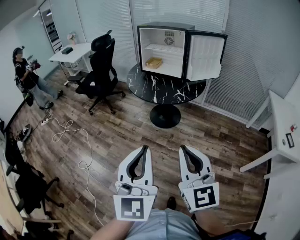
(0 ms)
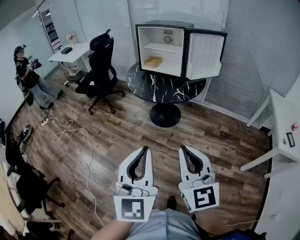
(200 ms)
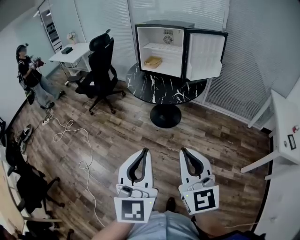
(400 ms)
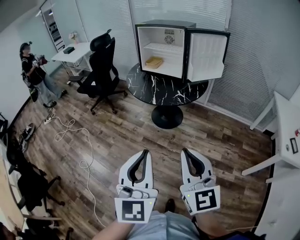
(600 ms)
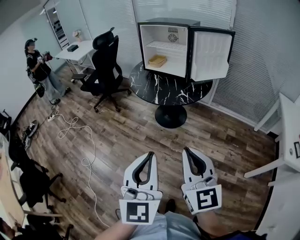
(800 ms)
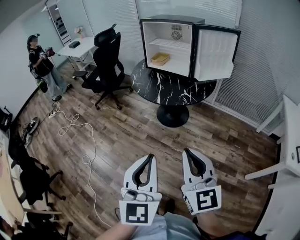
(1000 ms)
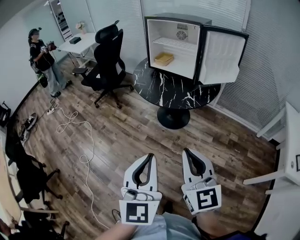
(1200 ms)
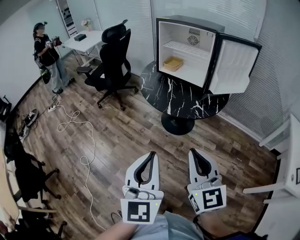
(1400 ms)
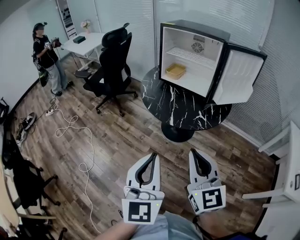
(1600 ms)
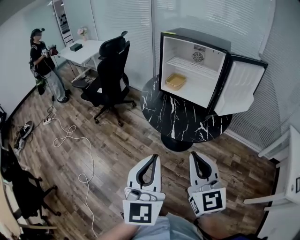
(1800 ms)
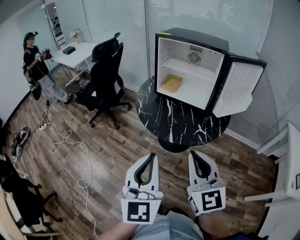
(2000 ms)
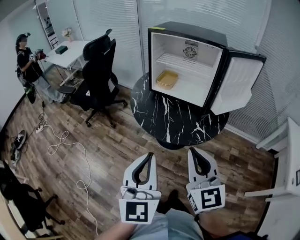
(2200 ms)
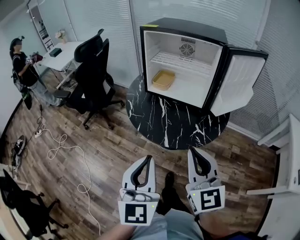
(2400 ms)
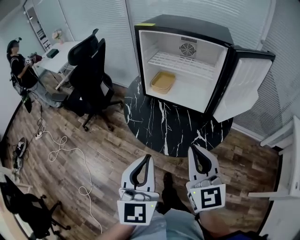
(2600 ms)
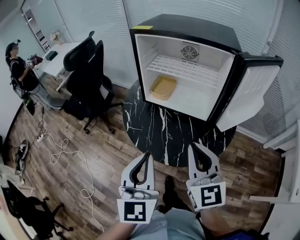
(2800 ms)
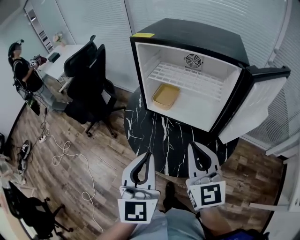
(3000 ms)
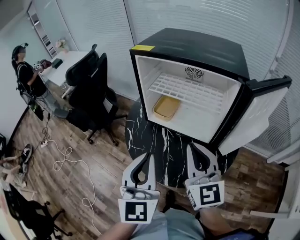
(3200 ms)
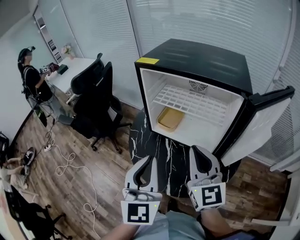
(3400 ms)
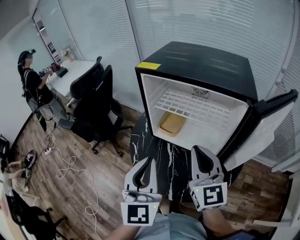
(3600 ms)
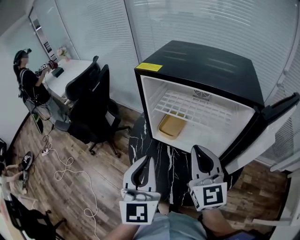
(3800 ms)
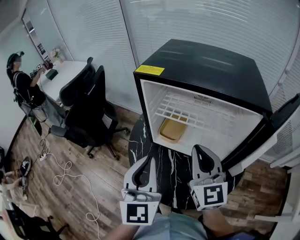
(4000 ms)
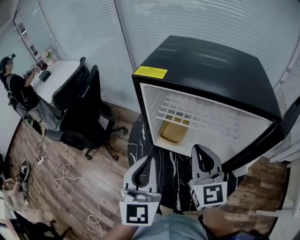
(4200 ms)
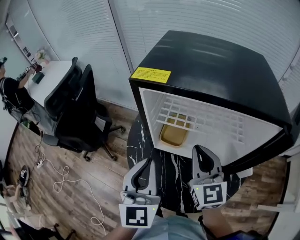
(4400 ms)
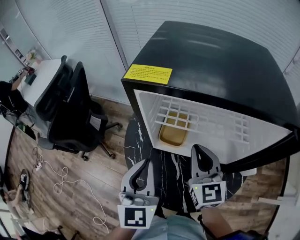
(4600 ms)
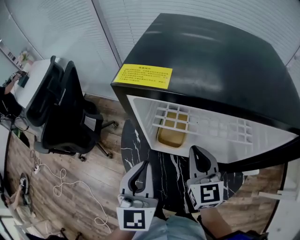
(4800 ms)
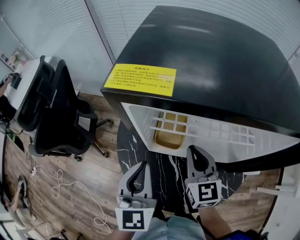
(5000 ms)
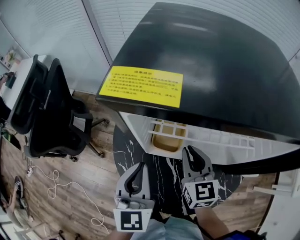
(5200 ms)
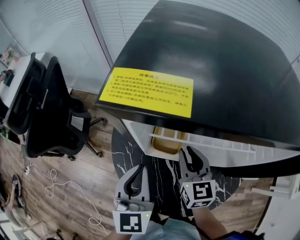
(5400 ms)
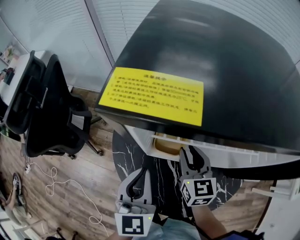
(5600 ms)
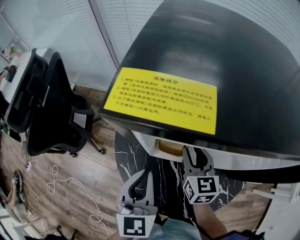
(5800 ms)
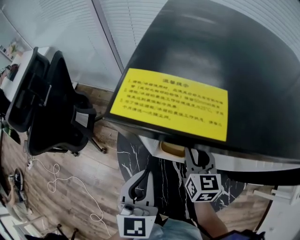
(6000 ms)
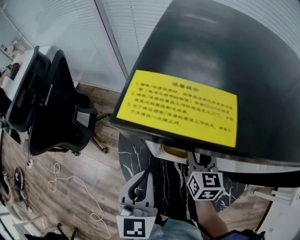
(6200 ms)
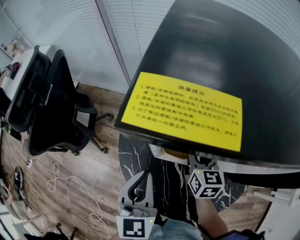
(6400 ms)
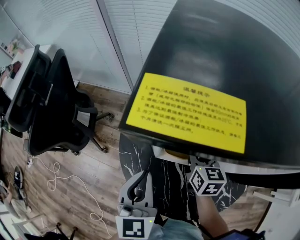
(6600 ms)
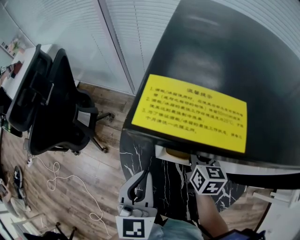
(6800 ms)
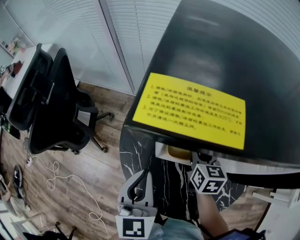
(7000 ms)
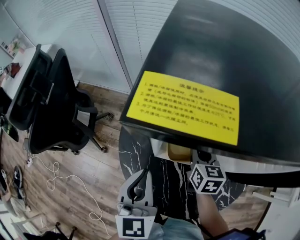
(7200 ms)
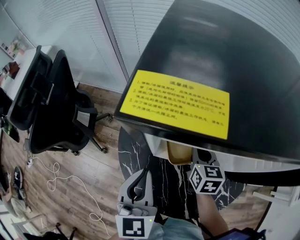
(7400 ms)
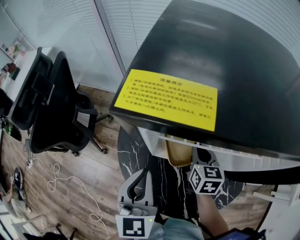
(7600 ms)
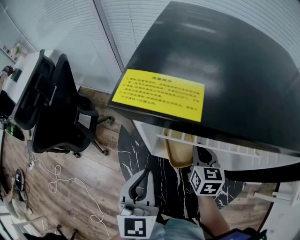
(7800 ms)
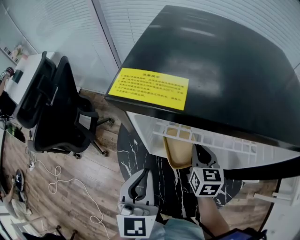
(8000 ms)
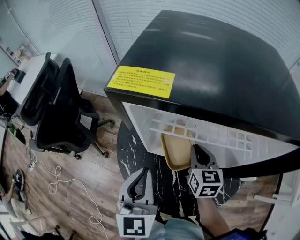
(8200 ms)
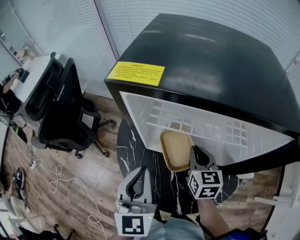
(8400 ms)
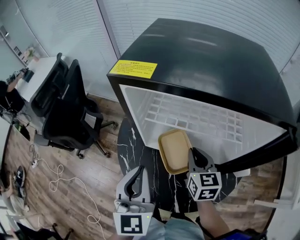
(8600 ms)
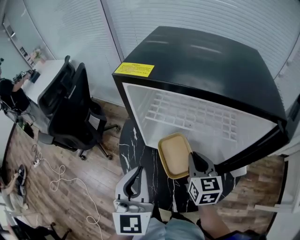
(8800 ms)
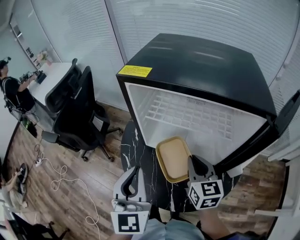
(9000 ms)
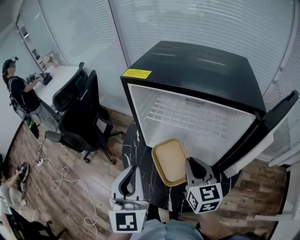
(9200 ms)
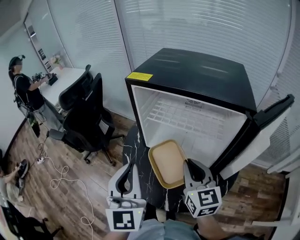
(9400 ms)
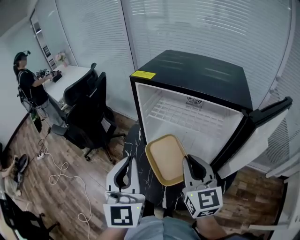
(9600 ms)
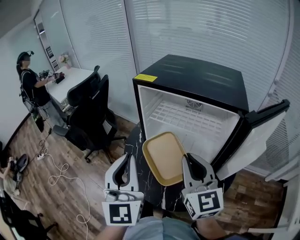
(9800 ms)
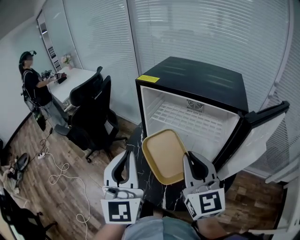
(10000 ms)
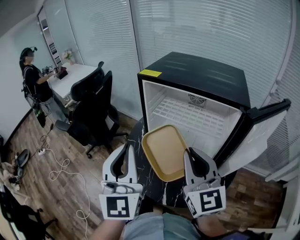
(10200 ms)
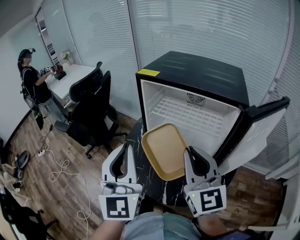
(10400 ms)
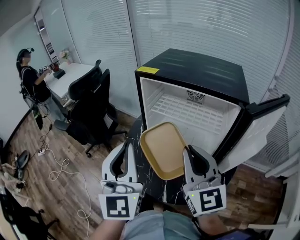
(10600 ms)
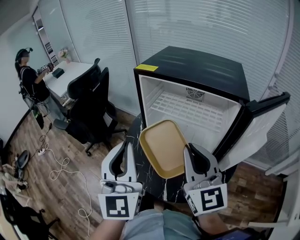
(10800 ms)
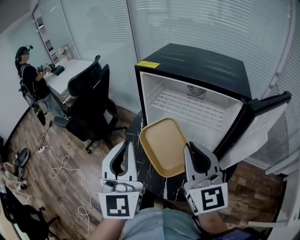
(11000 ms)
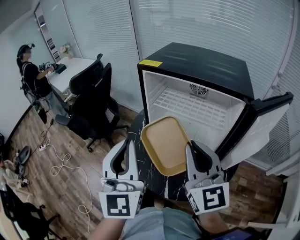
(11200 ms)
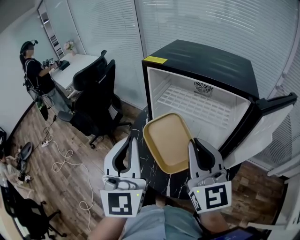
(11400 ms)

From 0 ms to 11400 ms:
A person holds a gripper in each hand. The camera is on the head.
From 0 ms to 1400 ms: Both grippers move forward, some 20 cm.
From 1400 ms to 2800 ms: The two grippers go about 40 cm forward.
From 2800 ms to 4200 ms: Both grippers move forward, about 25 cm.
From 4200 ms to 5600 ms: Both grippers move downward and forward, about 20 cm. The right gripper changes its angle by some 30 degrees, and opens.
From 5600 ms to 7200 ms: The right gripper changes place by about 5 cm.
From 7200 ms to 8600 ms: The left gripper heads backward, upward and to the right, covering approximately 10 cm; the right gripper goes some 10 cm backward and upward.
From 8600 ms to 10000 ms: Both grippers move upward and backward, about 25 cm. The right gripper swivels approximately 40 degrees. Meanwhile the left gripper turns by roughly 30 degrees.
From 10000 ms to 11400 ms: The grippers move only a little.

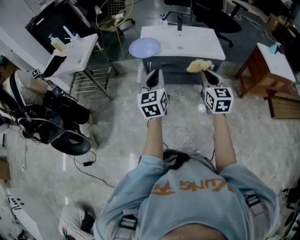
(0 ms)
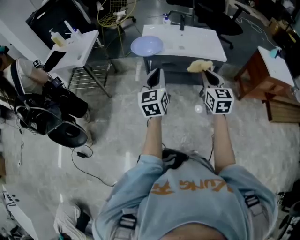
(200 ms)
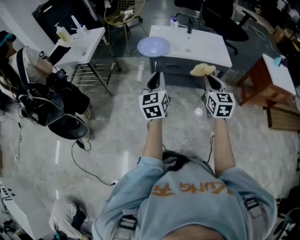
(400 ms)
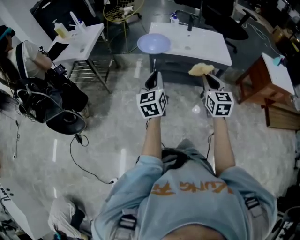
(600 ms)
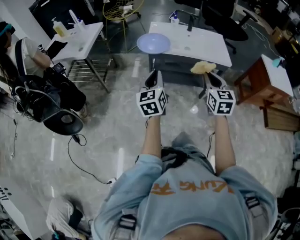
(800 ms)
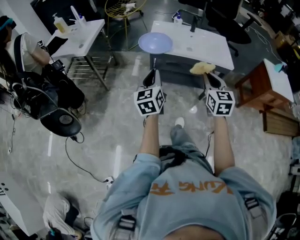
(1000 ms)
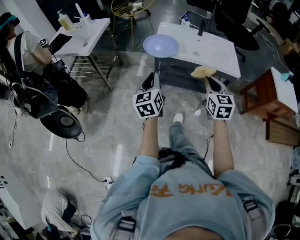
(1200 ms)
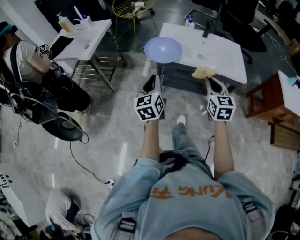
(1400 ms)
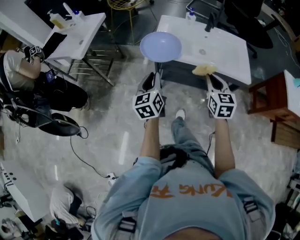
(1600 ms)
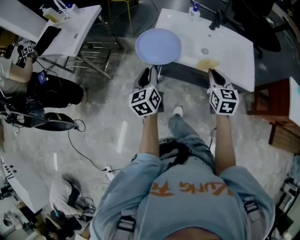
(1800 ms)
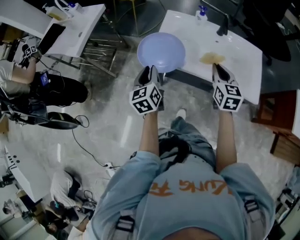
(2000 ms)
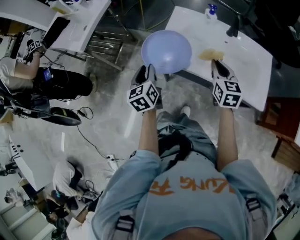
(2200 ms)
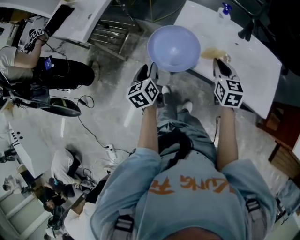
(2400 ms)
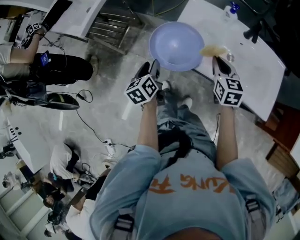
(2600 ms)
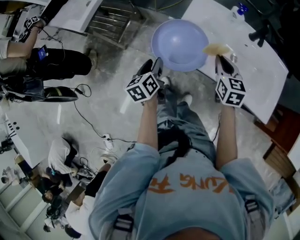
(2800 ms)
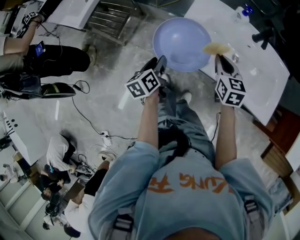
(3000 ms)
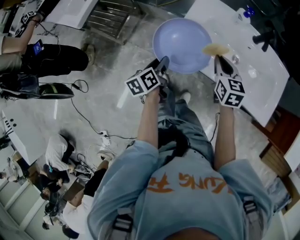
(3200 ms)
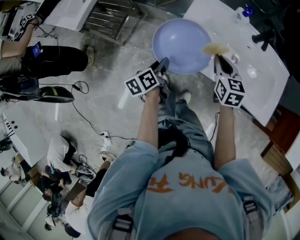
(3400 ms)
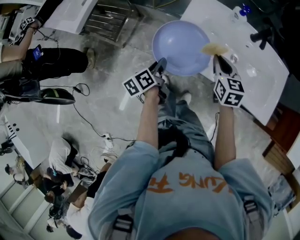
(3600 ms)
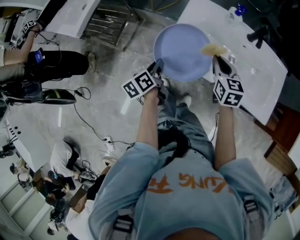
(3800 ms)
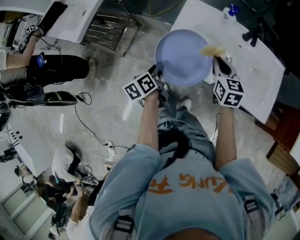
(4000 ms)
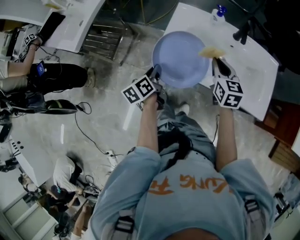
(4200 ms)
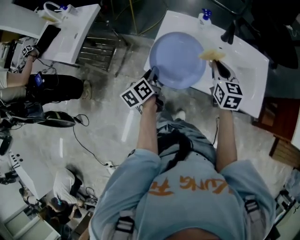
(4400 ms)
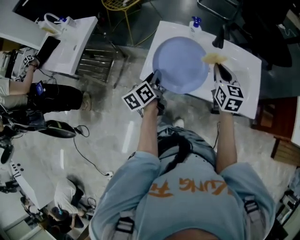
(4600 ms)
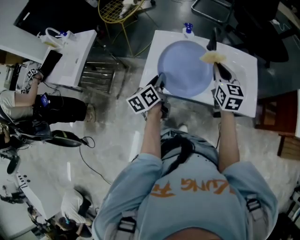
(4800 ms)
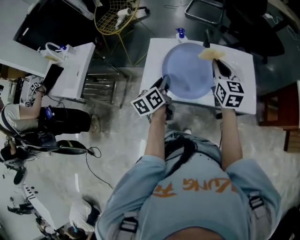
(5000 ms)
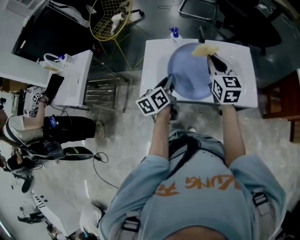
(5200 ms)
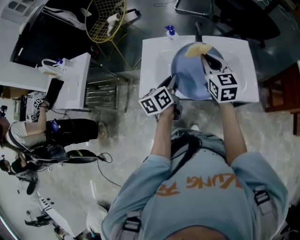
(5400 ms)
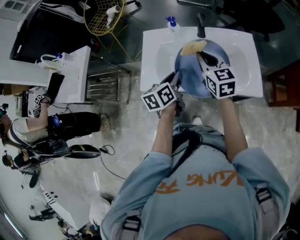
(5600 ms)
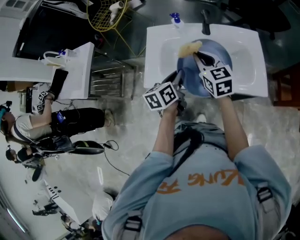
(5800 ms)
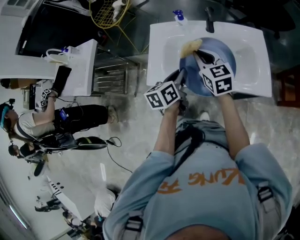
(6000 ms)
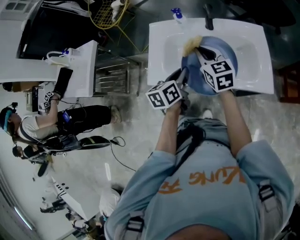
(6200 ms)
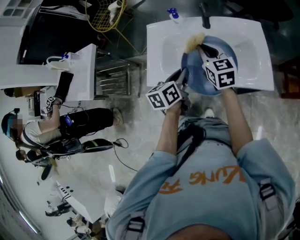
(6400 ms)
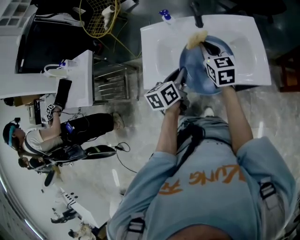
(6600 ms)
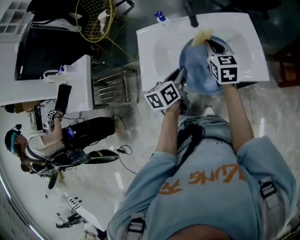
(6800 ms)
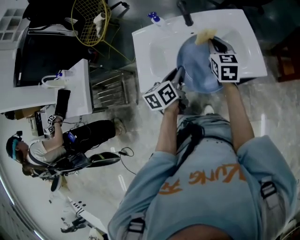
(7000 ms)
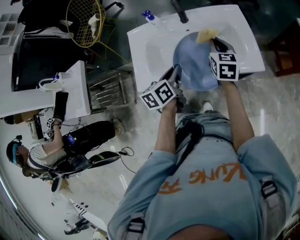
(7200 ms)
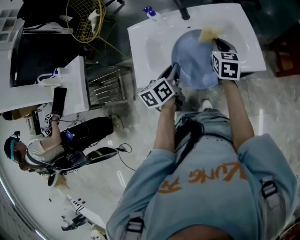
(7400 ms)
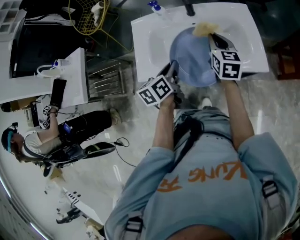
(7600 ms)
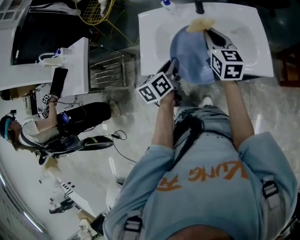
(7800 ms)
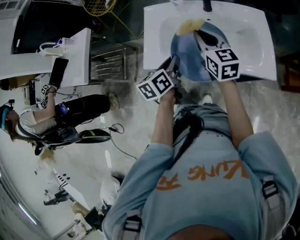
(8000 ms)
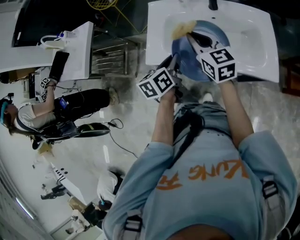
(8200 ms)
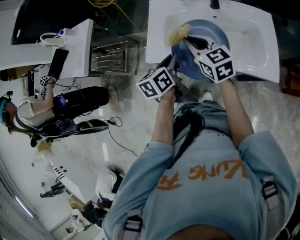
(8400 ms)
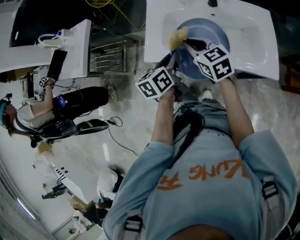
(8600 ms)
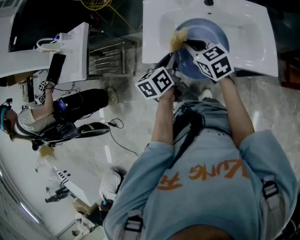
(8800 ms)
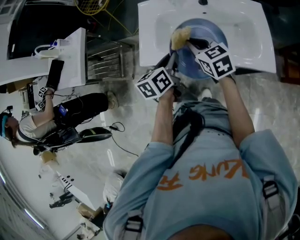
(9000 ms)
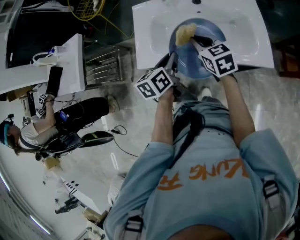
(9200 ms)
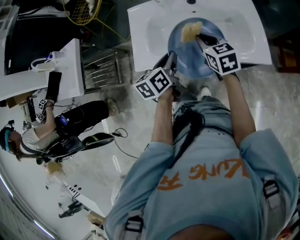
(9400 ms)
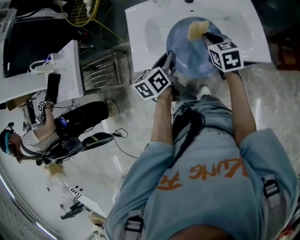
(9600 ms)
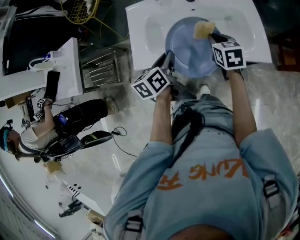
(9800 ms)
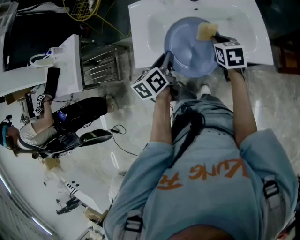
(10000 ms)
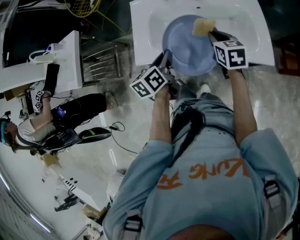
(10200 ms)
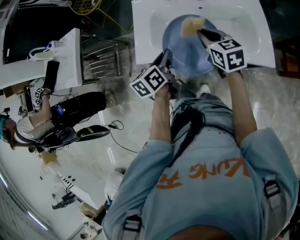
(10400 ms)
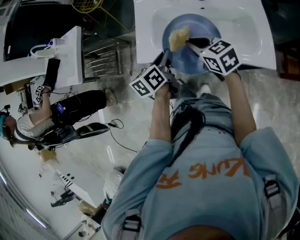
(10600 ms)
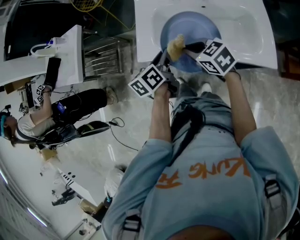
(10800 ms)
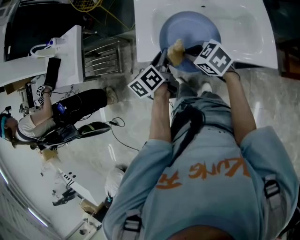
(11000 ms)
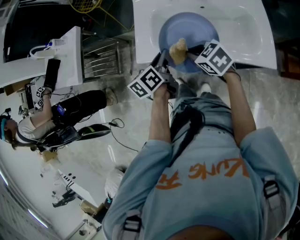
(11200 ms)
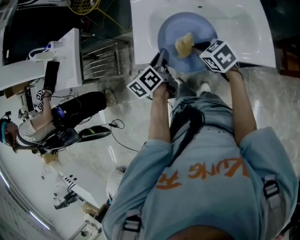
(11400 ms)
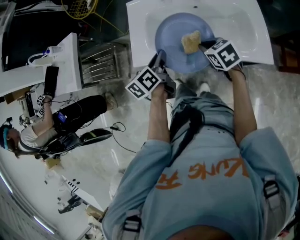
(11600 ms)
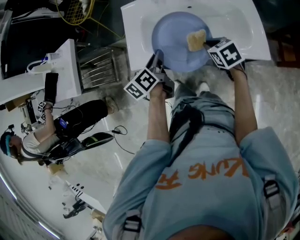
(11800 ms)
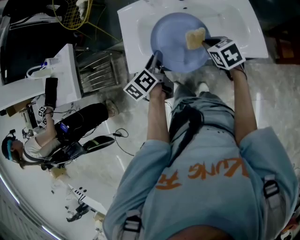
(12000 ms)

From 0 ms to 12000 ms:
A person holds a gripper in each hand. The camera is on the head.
From 0 ms to 1600 ms: The right gripper heads forward and downward, covering about 25 cm; the left gripper shifts some 25 cm forward, downward and to the left.
From 1600 ms to 3000 ms: Both grippers travel together forward and downward, some 25 cm. The left gripper turns by approximately 30 degrees, and opens.
From 3000 ms to 4400 ms: Both grippers travel together to the right and upward, about 10 cm. The left gripper closes its fingers.
From 4400 ms to 6000 ms: The right gripper reaches approximately 10 cm to the right, then returns; the left gripper moves to the right, some 15 cm, and rotates about 30 degrees.
From 6000 ms to 7600 ms: The right gripper heads to the right, covering approximately 15 cm, and turns by roughly 30 degrees.
From 7600 ms to 9000 ms: The right gripper is displaced to the left by approximately 15 cm, and changes its angle by roughly 30 degrees.
From 9000 ms to 10400 ms: The right gripper heads to the right, covering about 5 cm.
From 10400 ms to 12000 ms: The right gripper heads downward, covering some 5 cm, and reaches some 10 cm to the left, then returns.
